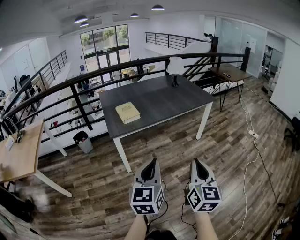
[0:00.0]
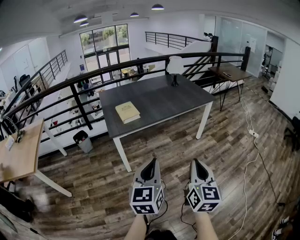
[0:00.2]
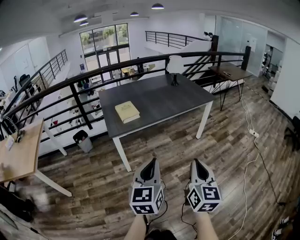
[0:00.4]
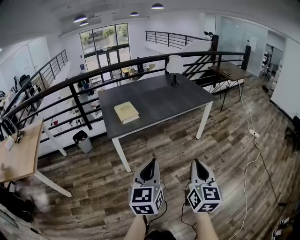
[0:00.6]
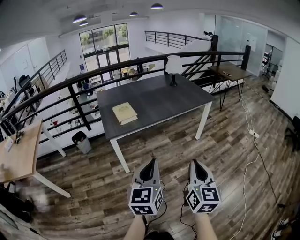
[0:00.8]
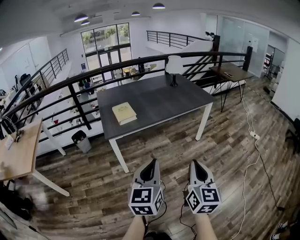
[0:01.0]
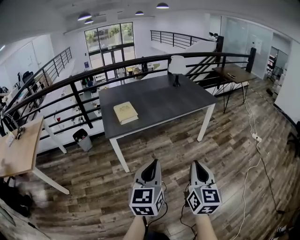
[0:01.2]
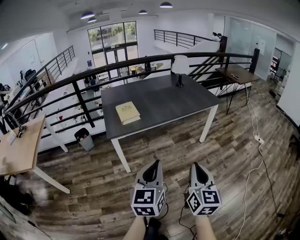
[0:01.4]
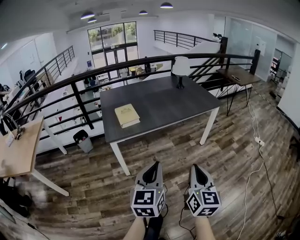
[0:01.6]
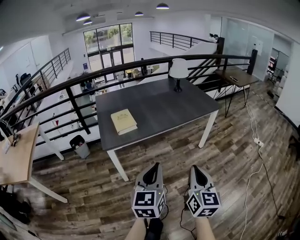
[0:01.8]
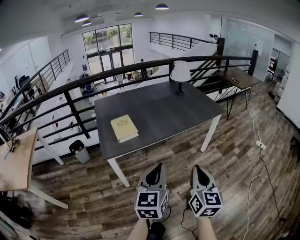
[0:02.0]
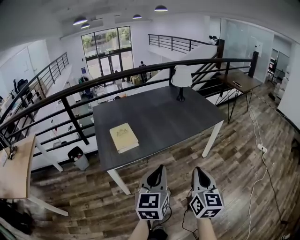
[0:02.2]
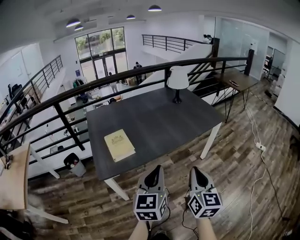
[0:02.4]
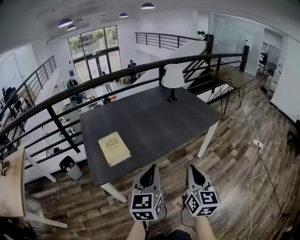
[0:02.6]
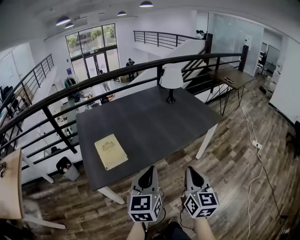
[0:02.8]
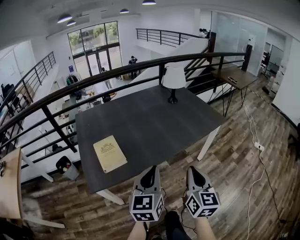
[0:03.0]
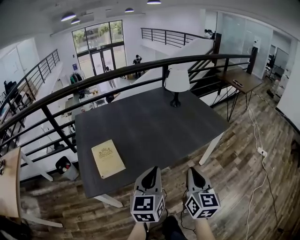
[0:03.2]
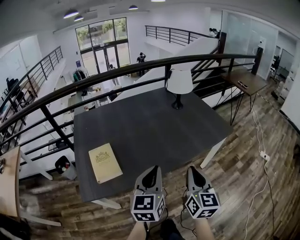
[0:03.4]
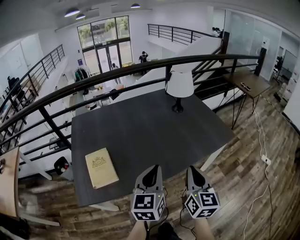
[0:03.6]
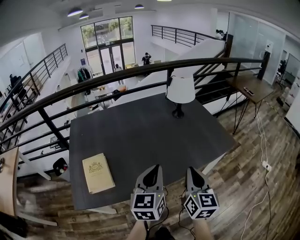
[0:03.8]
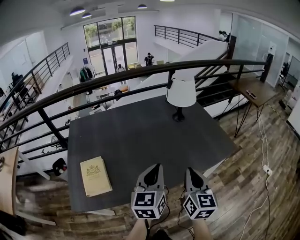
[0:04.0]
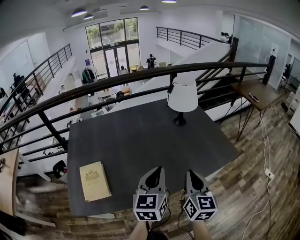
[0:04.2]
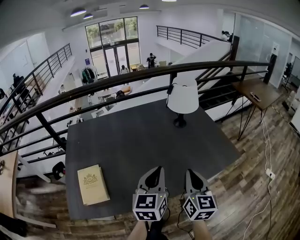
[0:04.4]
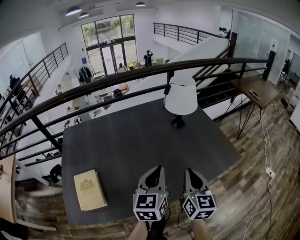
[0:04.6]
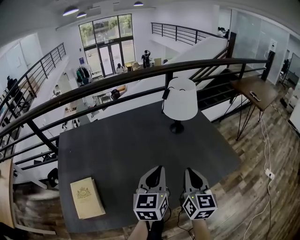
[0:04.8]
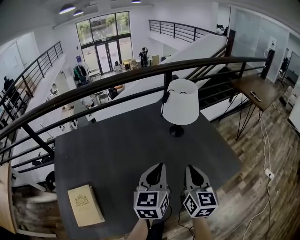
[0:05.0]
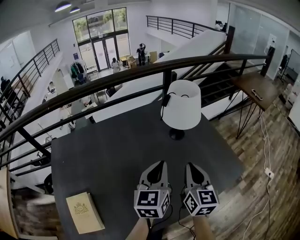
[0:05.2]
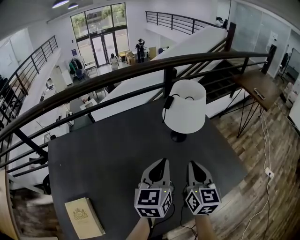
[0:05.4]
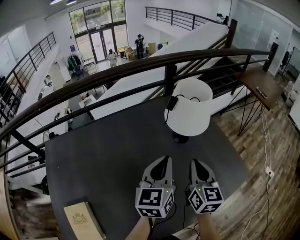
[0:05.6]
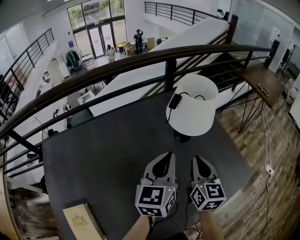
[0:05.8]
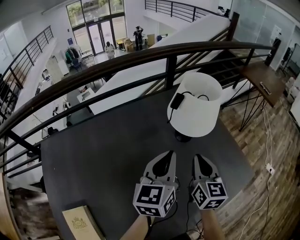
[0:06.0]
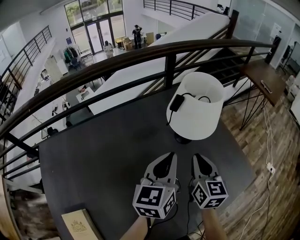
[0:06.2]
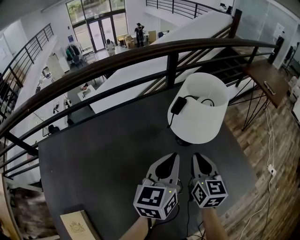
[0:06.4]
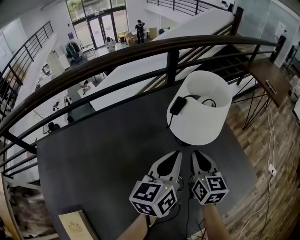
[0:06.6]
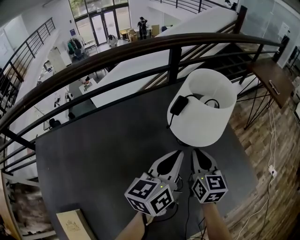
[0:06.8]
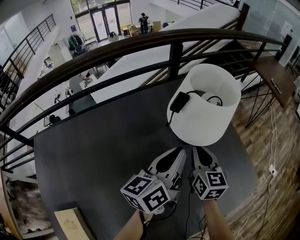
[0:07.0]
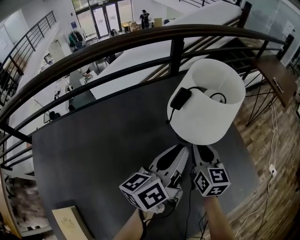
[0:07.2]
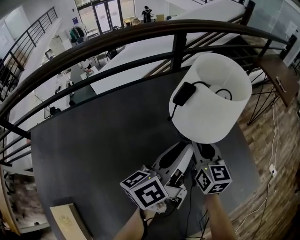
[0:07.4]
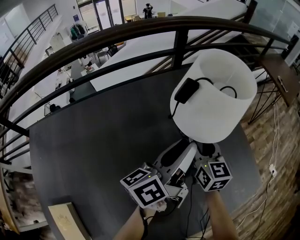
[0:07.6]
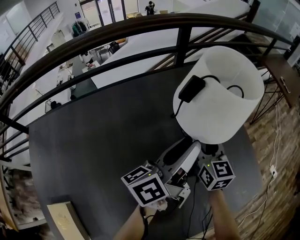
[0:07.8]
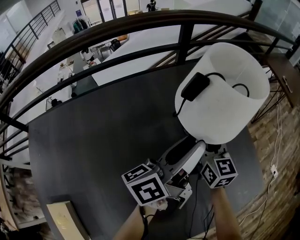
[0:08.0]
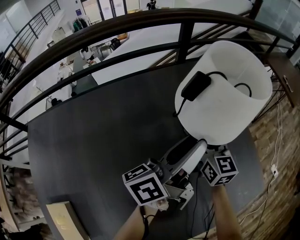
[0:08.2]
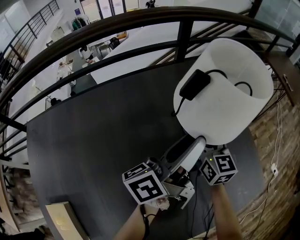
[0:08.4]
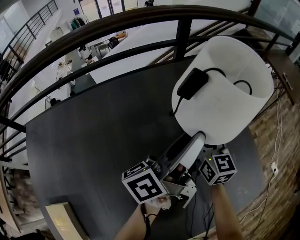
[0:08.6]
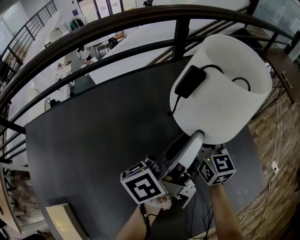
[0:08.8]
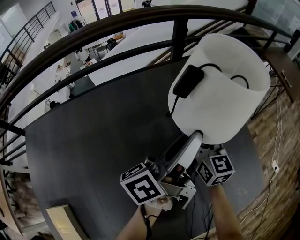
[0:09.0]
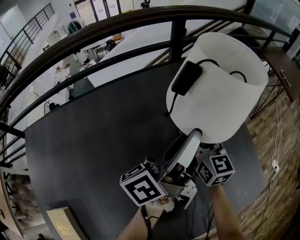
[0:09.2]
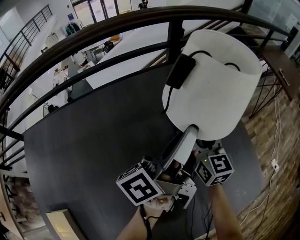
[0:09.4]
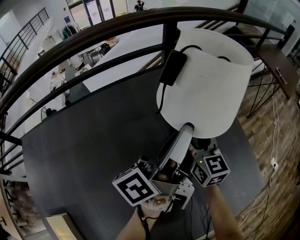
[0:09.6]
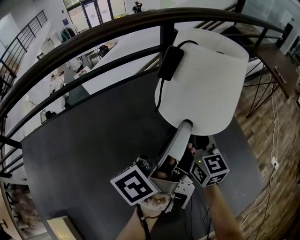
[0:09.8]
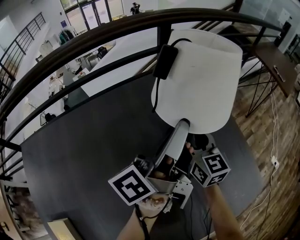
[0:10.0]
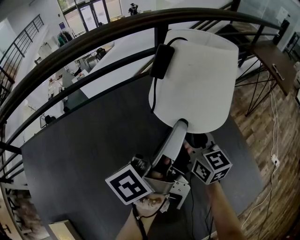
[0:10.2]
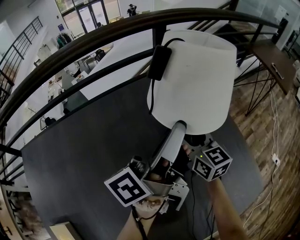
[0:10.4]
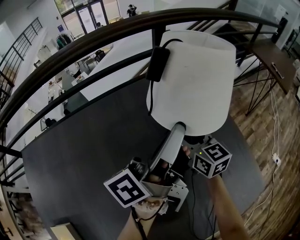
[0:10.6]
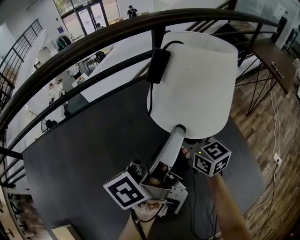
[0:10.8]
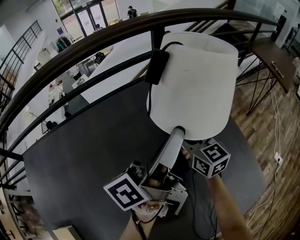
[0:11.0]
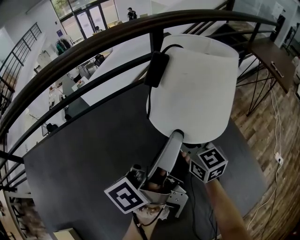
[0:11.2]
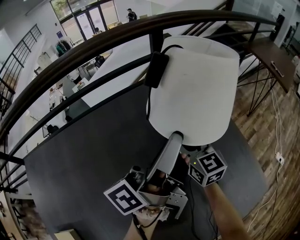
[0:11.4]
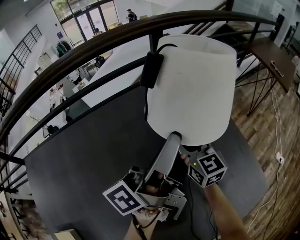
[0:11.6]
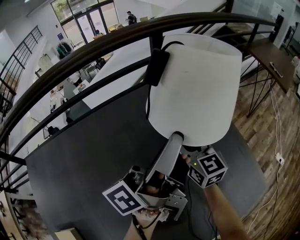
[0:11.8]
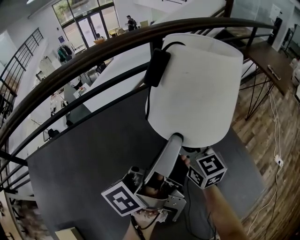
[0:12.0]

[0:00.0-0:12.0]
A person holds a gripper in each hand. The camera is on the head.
0:00.0 to 0:01.6: Both grippers travel together forward, roughly 10 cm.
0:01.6 to 0:03.0: The two grippers go roughly 35 cm forward.
0:03.0 to 0:04.4: Both grippers move forward, some 30 cm.
0:04.4 to 0:06.0: Both grippers travel together forward, approximately 35 cm.
0:06.0 to 0:07.6: The right gripper shifts roughly 15 cm forward and downward, and opens its fingers. Meanwhile the left gripper is displaced forward and downward by roughly 10 cm, rotates around the line of its fingers by some 40 degrees, counterclockwise from behind, and opens up.
0:07.6 to 0:09.0: The grippers stay close to where they were, moving slightly.
0:09.0 to 0:10.4: The left gripper moves forward, approximately 5 cm.
0:10.4 to 0:12.0: The left gripper shifts approximately 5 cm upward.

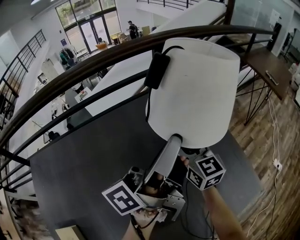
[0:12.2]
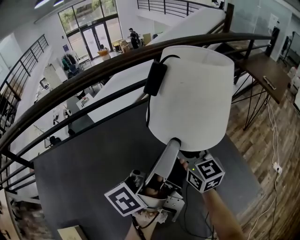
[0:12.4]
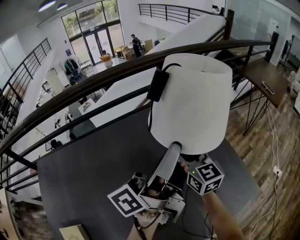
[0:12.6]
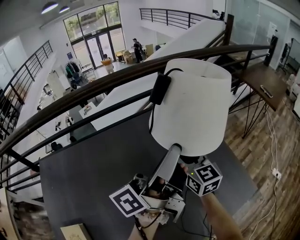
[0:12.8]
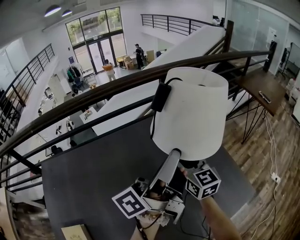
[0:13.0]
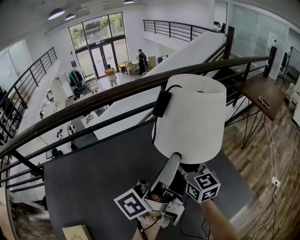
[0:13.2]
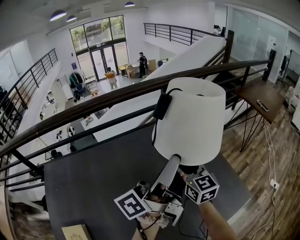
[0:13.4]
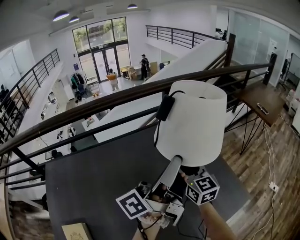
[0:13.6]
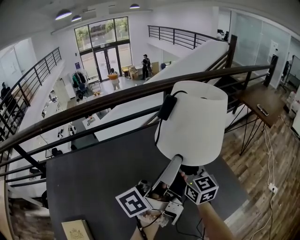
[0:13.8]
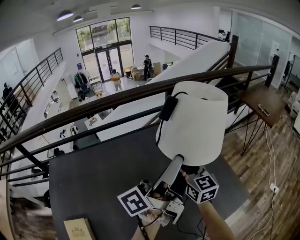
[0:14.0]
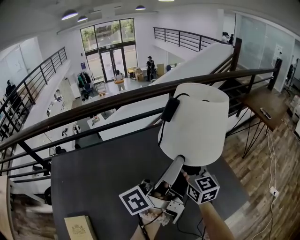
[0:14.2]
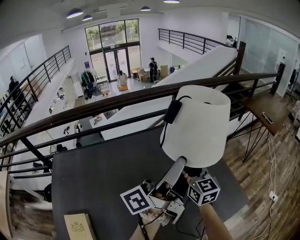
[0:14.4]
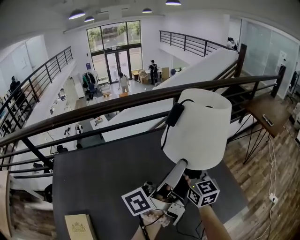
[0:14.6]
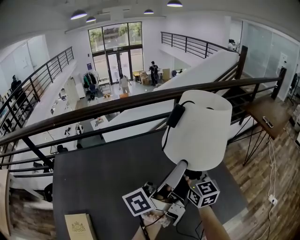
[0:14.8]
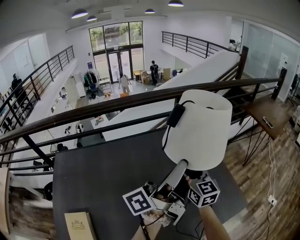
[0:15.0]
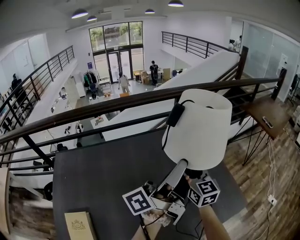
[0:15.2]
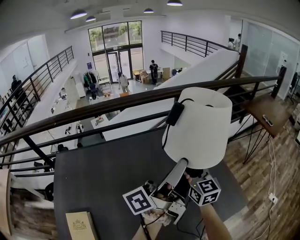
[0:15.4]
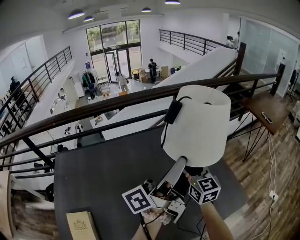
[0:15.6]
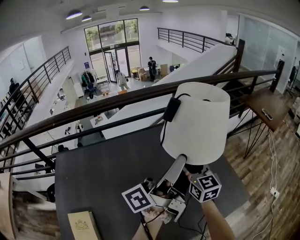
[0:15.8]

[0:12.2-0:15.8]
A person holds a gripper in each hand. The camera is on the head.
0:12.2 to 0:14.0: Both grippers move backward and upward, some 15 cm.
0:14.0 to 0:15.8: The grippers move only a little.

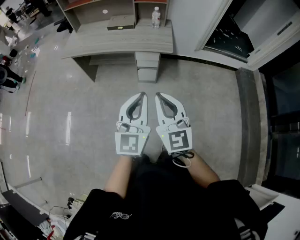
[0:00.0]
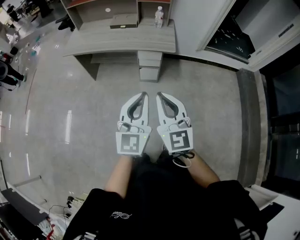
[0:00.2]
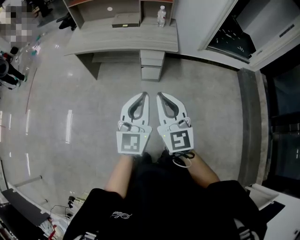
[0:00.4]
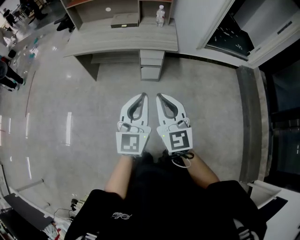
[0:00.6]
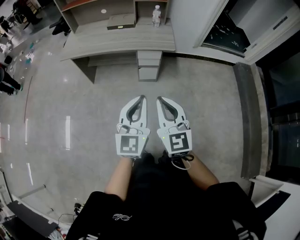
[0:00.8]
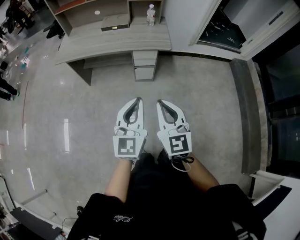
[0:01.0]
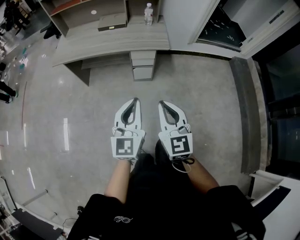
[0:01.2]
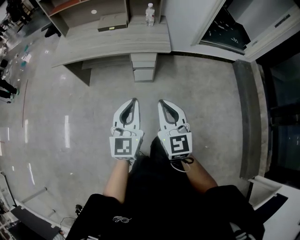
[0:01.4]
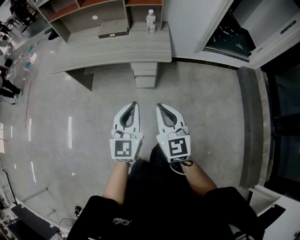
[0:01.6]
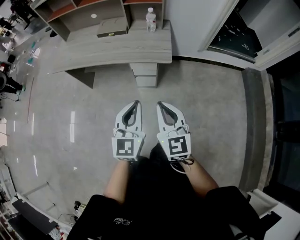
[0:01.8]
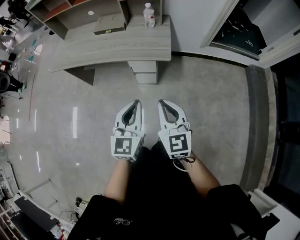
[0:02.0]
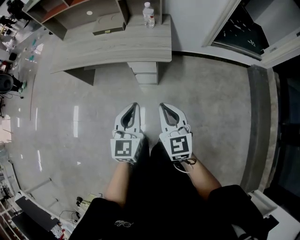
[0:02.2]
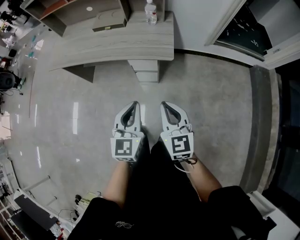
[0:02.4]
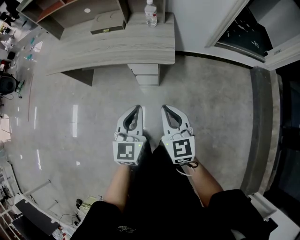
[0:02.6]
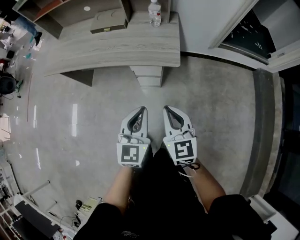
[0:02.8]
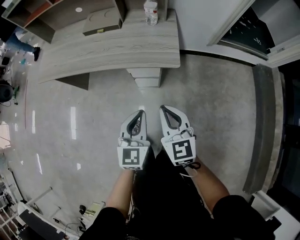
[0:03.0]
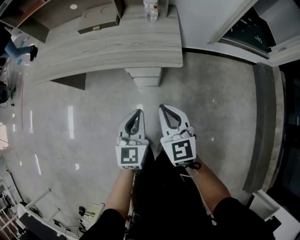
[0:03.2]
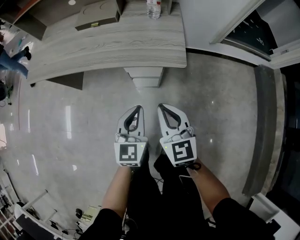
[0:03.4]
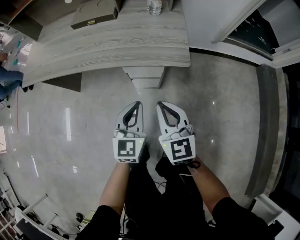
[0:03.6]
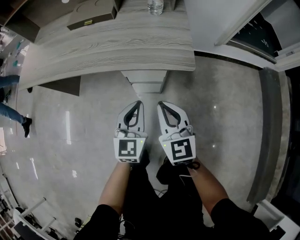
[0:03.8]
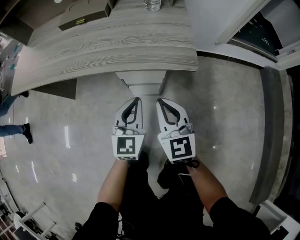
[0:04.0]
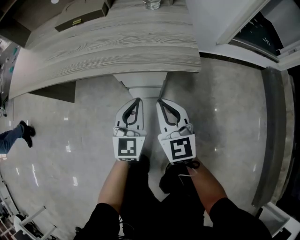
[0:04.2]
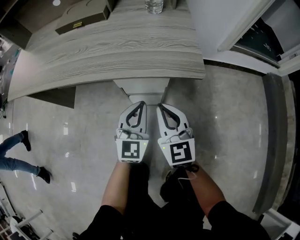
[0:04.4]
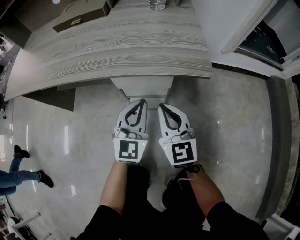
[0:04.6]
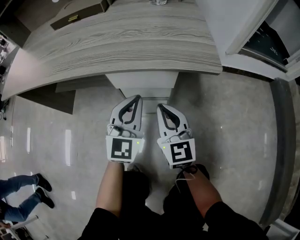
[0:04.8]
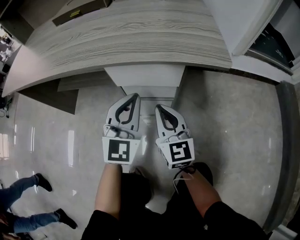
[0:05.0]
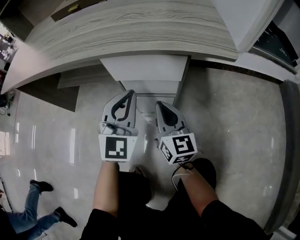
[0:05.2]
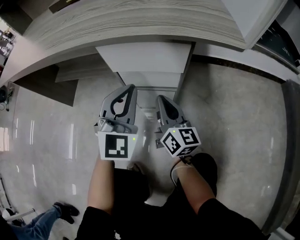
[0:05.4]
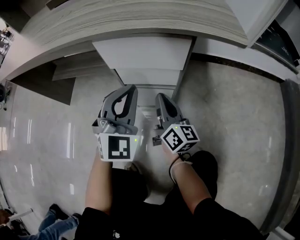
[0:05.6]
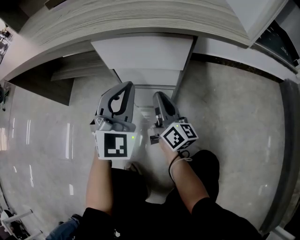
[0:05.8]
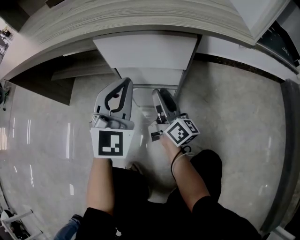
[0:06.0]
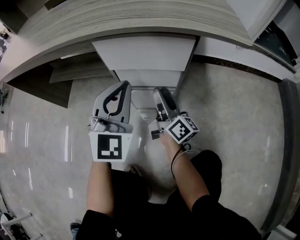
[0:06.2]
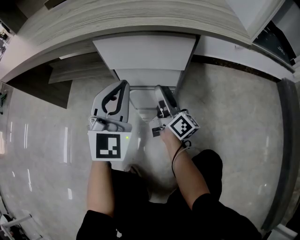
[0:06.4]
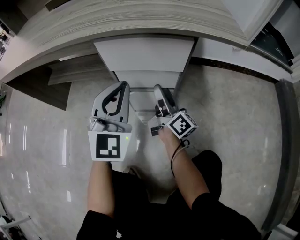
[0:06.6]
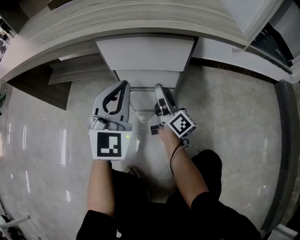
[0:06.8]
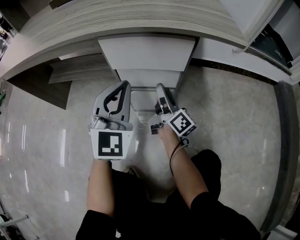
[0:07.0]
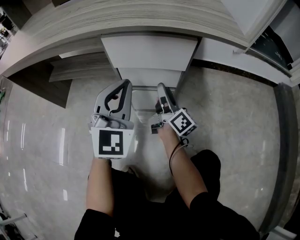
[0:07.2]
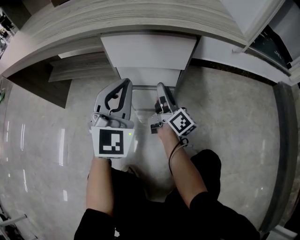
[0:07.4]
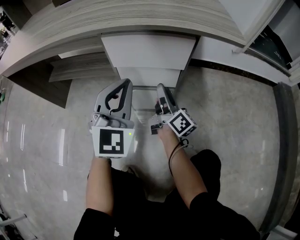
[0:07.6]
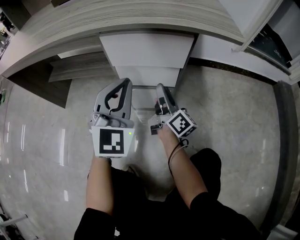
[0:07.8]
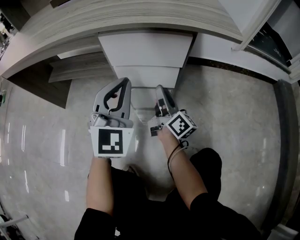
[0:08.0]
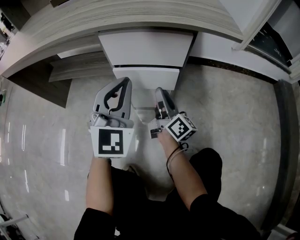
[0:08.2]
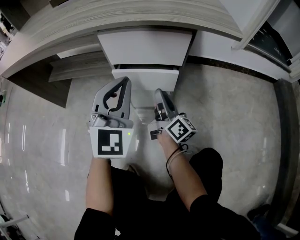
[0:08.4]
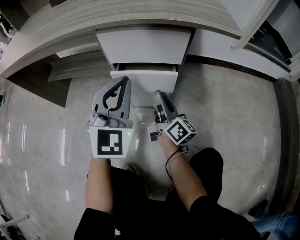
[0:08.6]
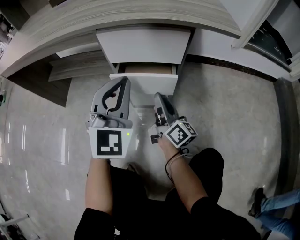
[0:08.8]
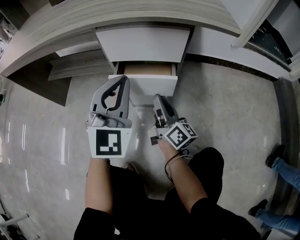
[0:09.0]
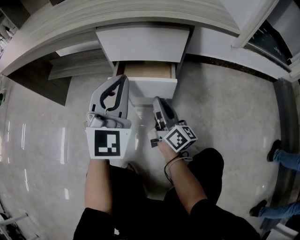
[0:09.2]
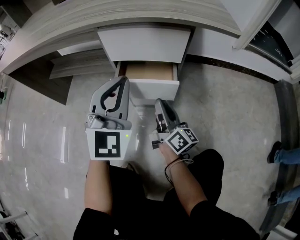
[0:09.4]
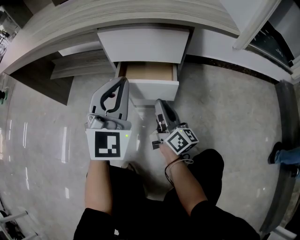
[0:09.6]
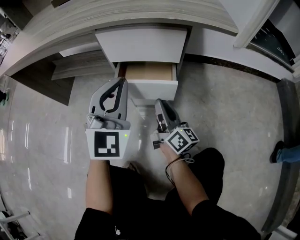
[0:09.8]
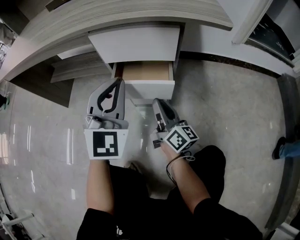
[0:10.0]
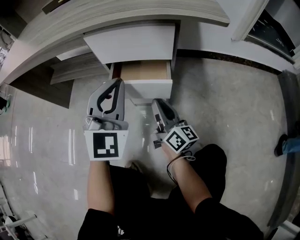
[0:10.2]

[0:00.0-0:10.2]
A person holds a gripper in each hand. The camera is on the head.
0:00.0 to 0:01.4: Both grippers travel together downward and forward, about 10 cm.
0:01.4 to 0:03.0: Both grippers move forward and downward, about 25 cm.
0:03.0 to 0:04.4: Both grippers move downward and forward, roughly 30 cm.
0:04.4 to 0:05.8: The left gripper goes some 10 cm downward, and rotates roughly 20 degrees. Meanwhile the right gripper goes roughly 20 cm downward, and twists about 50 degrees clockwise, seen from behind.
0:05.8 to 0:07.2: The right gripper opens its fingers.
0:07.2 to 0:08.8: The right gripper is displaced backward by approximately 5 cm.
0:08.8 to 0:10.2: The grippers make only small movements.
